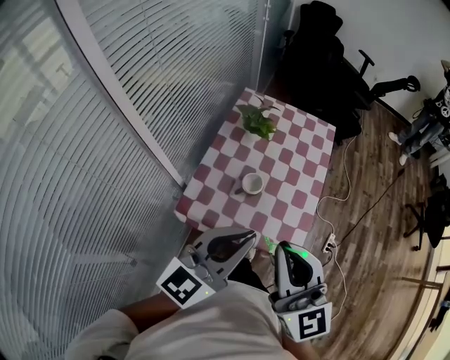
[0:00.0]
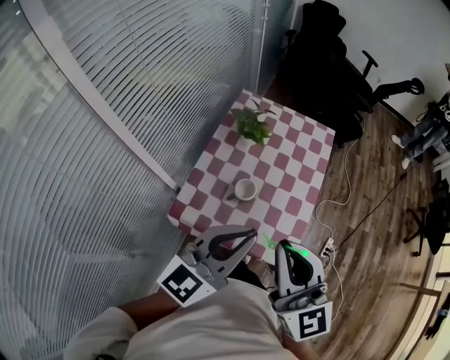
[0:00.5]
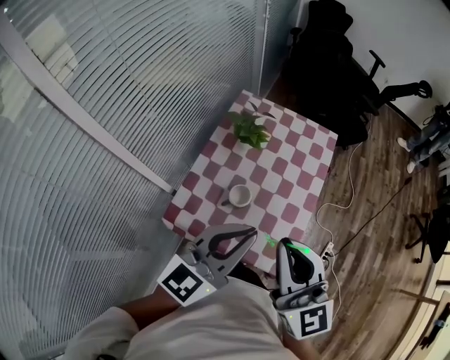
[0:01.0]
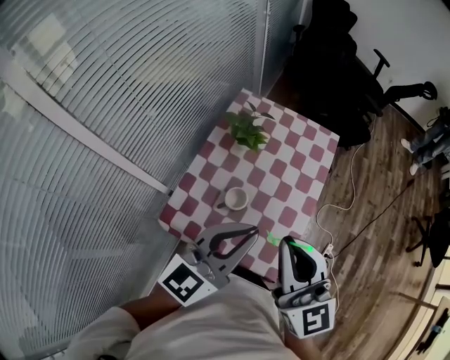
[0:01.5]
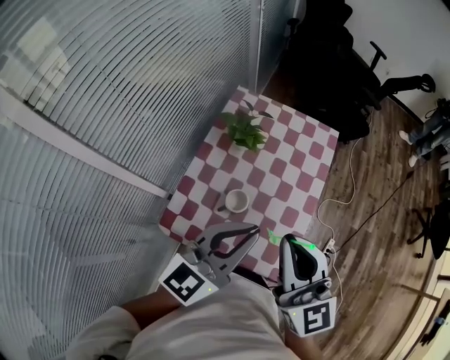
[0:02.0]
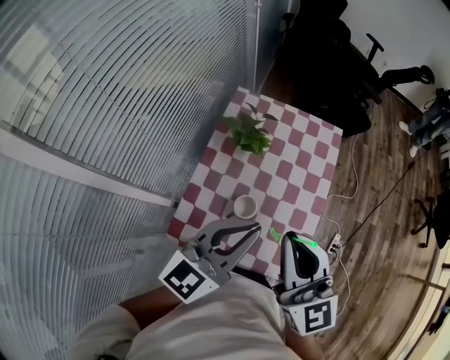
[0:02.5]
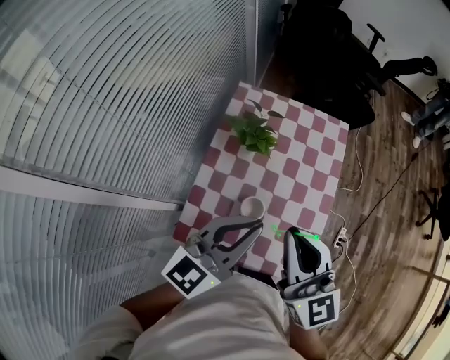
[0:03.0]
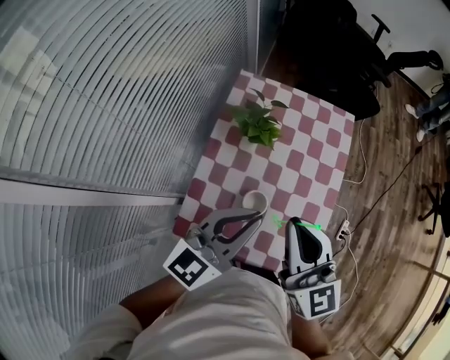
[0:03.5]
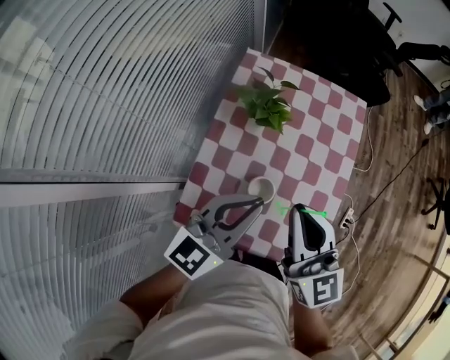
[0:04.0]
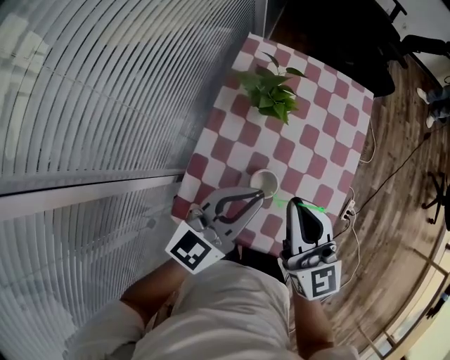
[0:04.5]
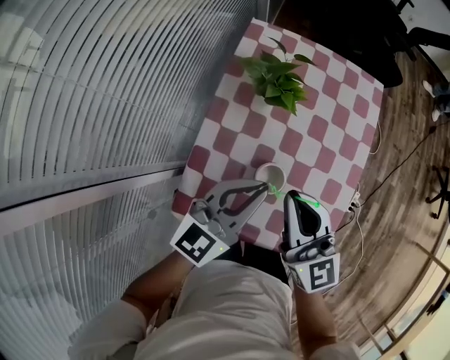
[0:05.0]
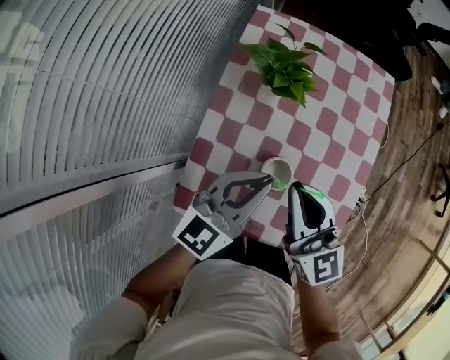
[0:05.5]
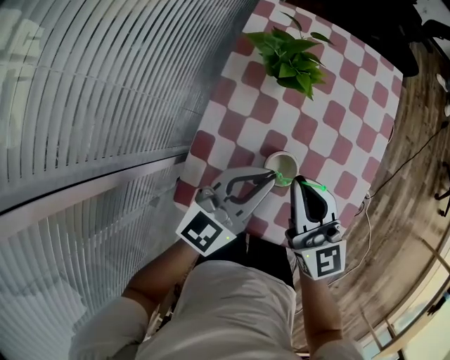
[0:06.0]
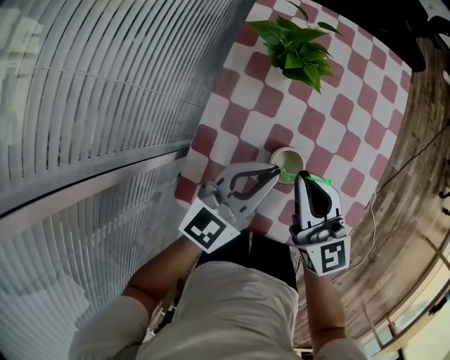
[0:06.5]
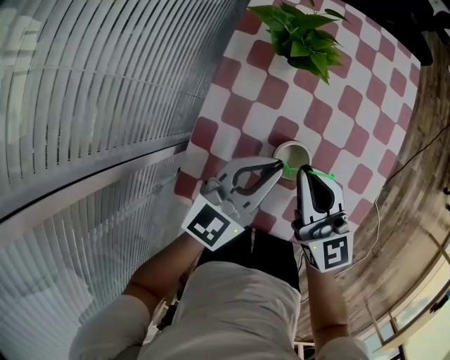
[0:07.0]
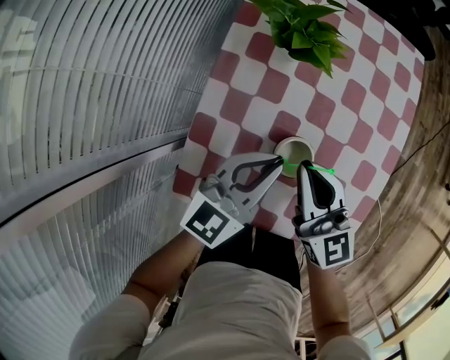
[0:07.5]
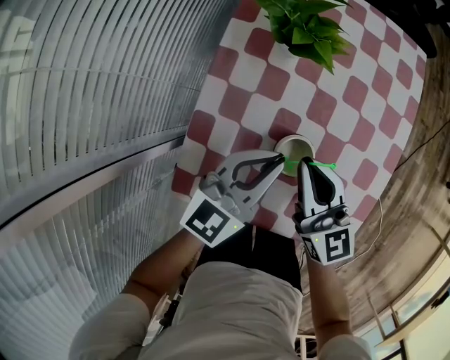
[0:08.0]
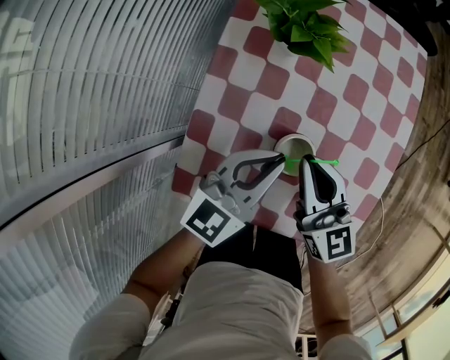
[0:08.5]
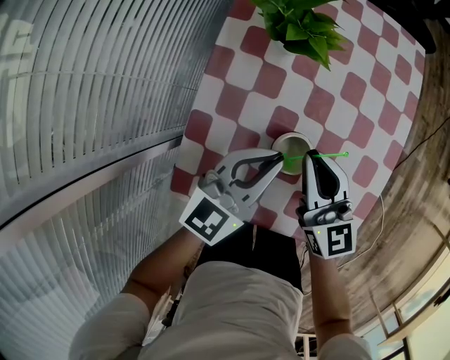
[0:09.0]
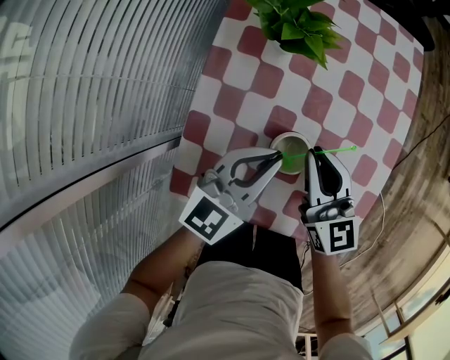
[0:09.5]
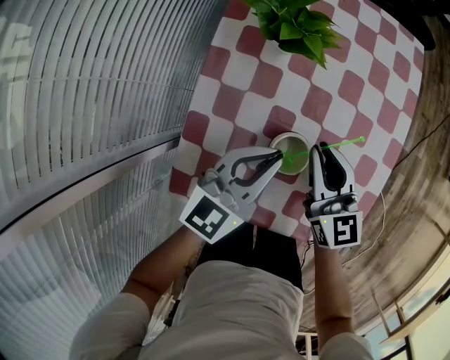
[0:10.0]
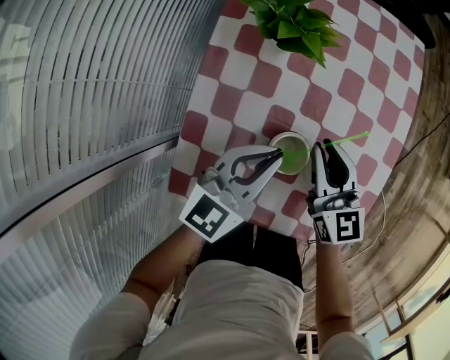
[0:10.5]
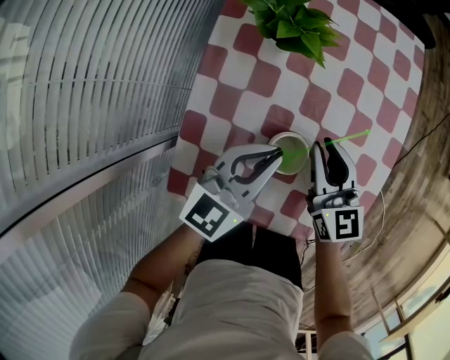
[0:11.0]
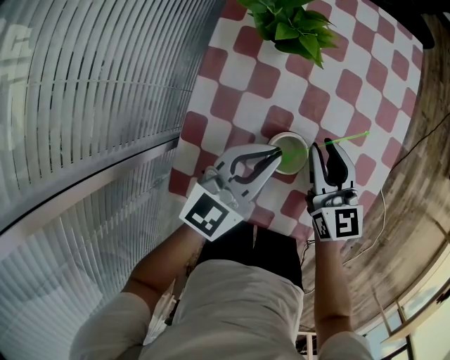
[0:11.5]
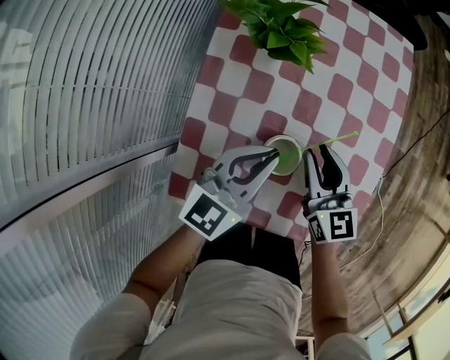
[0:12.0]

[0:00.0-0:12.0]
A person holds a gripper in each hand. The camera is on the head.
0:00.0 to 0:02.0: The right gripper heads forward and to the right, covering about 15 cm; the left gripper is displaced forward by approximately 15 cm.
0:02.0 to 0:04.0: The right gripper shifts approximately 15 cm downward, forward and to the left, while the left gripper heads downward, to the left and forward, covering about 15 cm.
0:04.0 to 0:06.0: Both grippers travel together downward, approximately 15 cm.
0:06.0 to 0:08.0: Both grippers travel together downward, approximately 5 cm.
0:08.0 to 0:10.0: The right gripper changes place by roughly 5 cm.
0:10.0 to 0:12.0: The grippers move only a little.

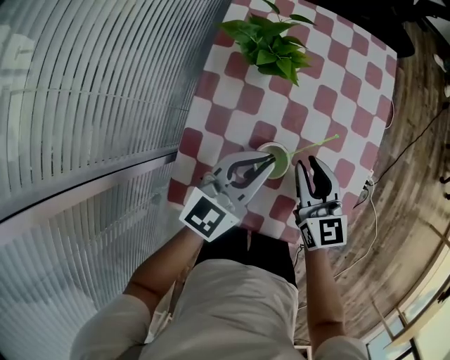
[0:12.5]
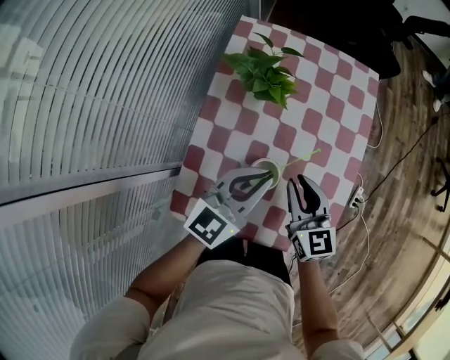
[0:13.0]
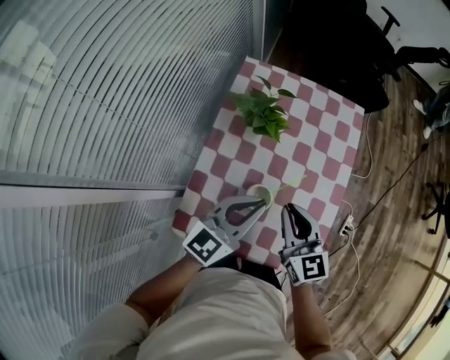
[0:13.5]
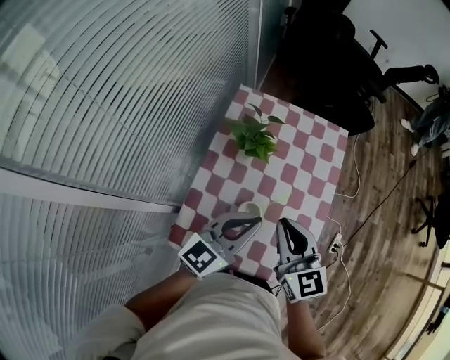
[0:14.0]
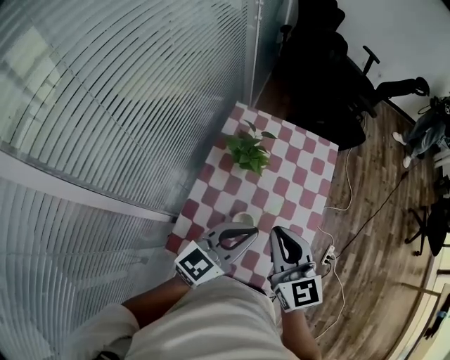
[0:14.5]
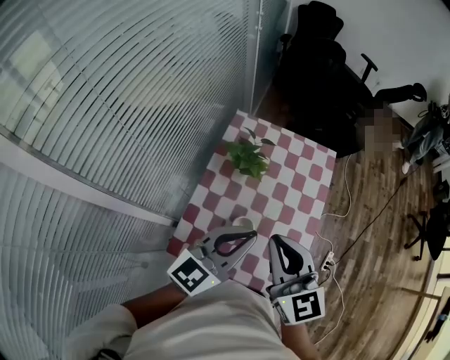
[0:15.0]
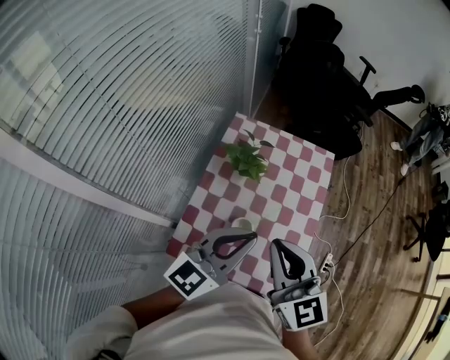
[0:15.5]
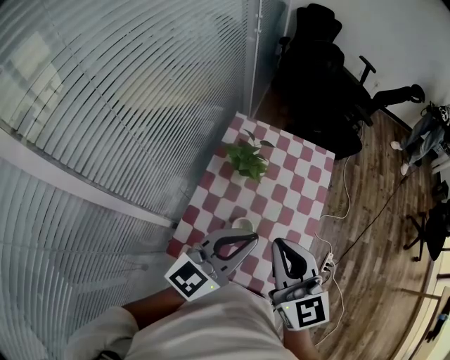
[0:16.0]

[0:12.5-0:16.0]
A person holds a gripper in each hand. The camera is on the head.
0:12.5 to 0:14.5: The grippers both shift upward by about 25 cm.
0:14.5 to 0:16.0: Both grippers move upward, approximately 10 cm.

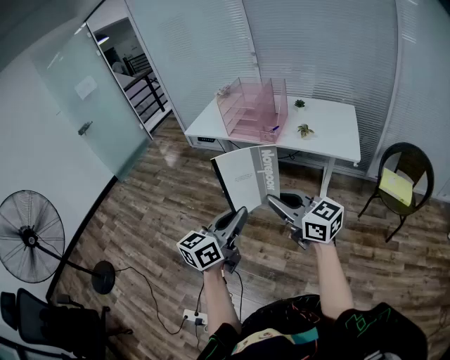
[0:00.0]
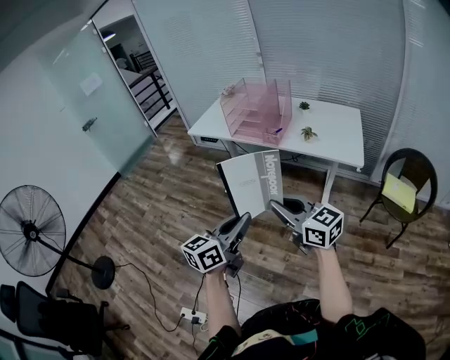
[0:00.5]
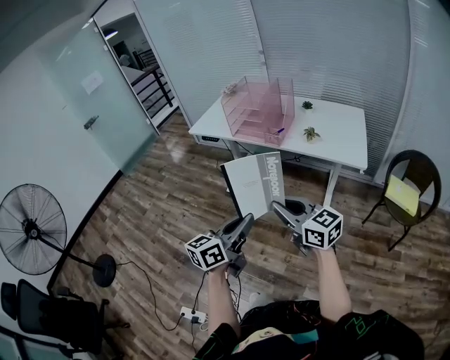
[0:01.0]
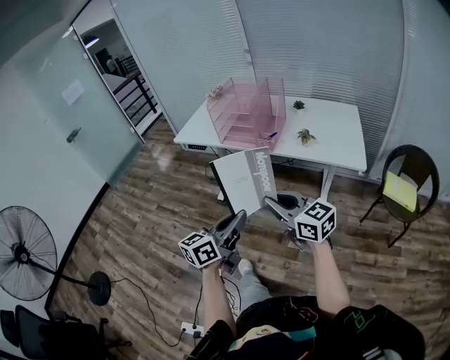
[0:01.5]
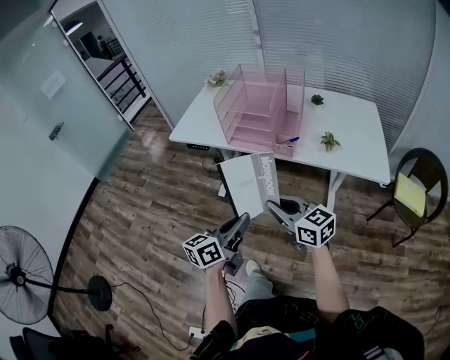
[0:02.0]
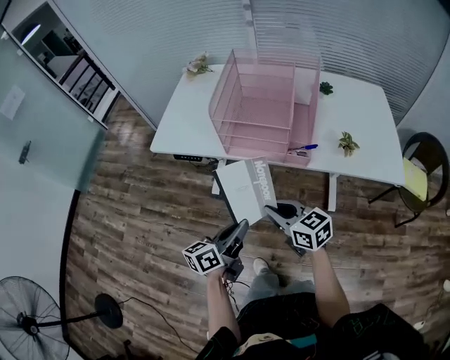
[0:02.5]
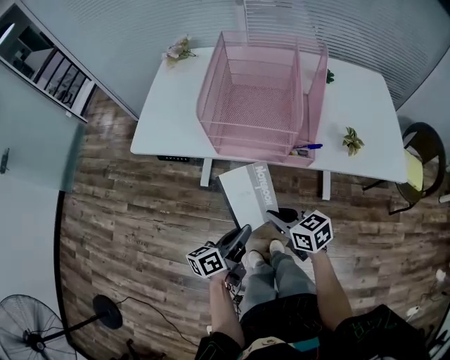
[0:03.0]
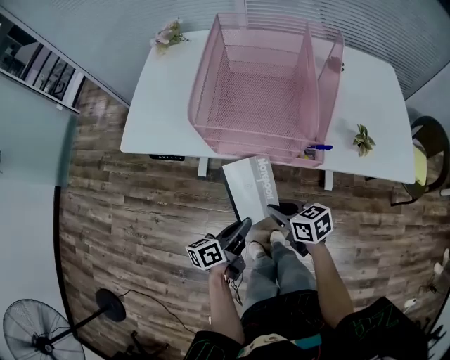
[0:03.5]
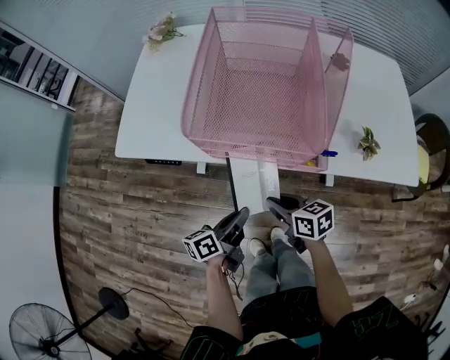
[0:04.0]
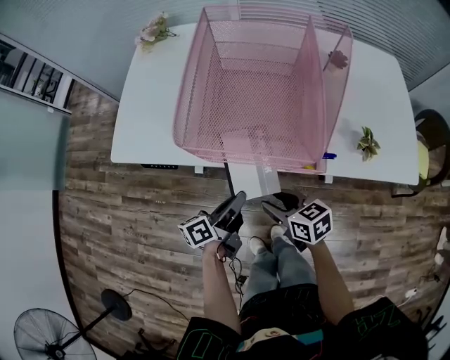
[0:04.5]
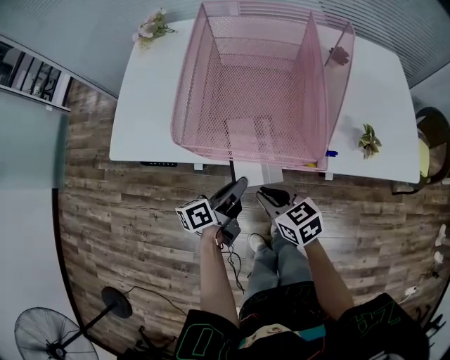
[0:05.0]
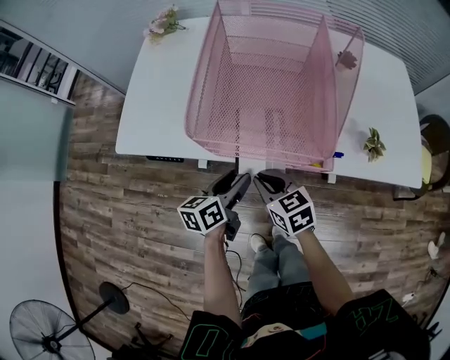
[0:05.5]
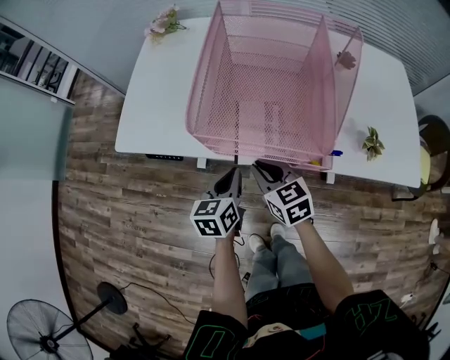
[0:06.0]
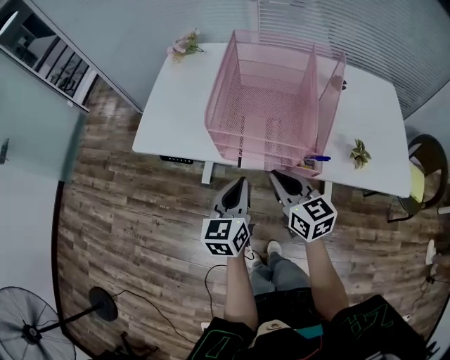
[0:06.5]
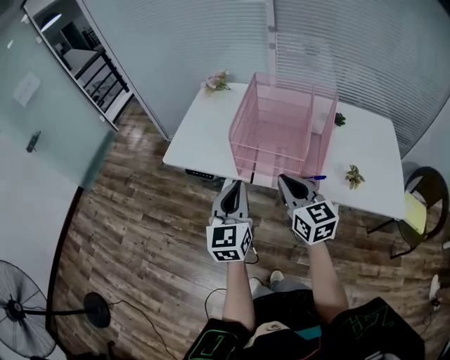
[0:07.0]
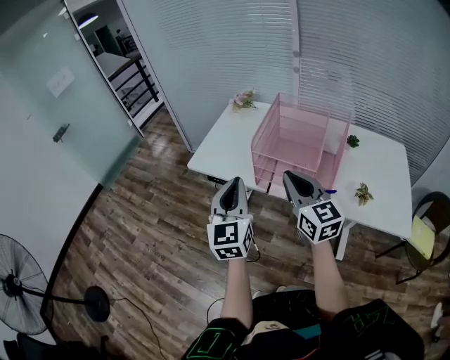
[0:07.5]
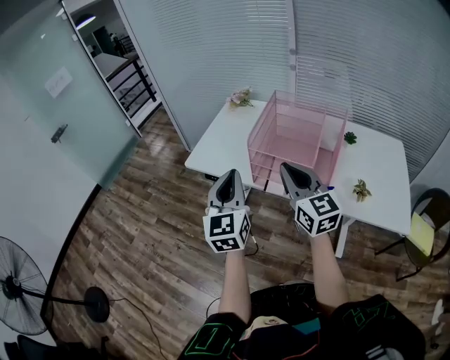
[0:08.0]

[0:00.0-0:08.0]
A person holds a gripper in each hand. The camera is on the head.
0:00.0 to 0:02.0: The two grippers go approximately 30 cm forward and downward.
0:02.0 to 0:04.0: Both grippers travel together forward and downward, some 30 cm. The right gripper swivels some 40 degrees. Meanwhile the left gripper rotates some 30 degrees.
0:04.0 to 0:06.0: Both grippers travel together forward, approximately 10 cm. The right gripper swivels approximately 30 degrees, and opens, then closes once more; the left gripper swivels approximately 40 degrees, and opens, then closes once more.
0:06.0 to 0:08.0: Both grippers travel together upward, about 30 cm. The left gripper points its fingers approximately 30 degrees further upward. The right gripper points its fingers some 30 degrees further upward.

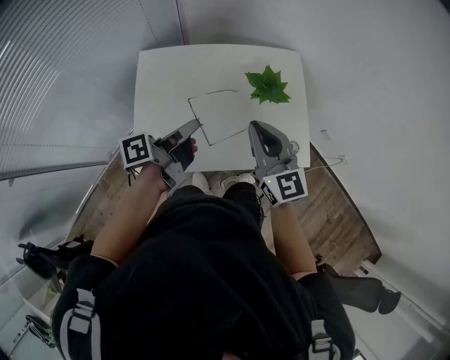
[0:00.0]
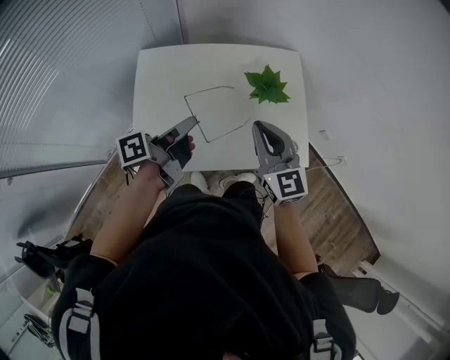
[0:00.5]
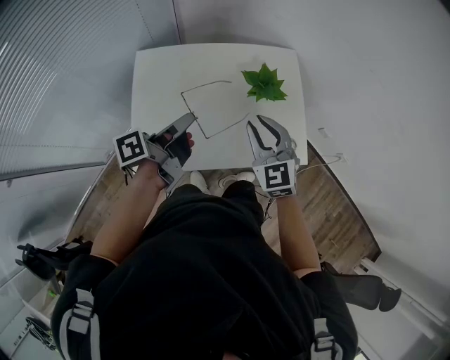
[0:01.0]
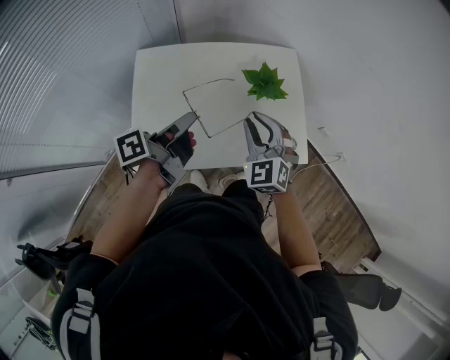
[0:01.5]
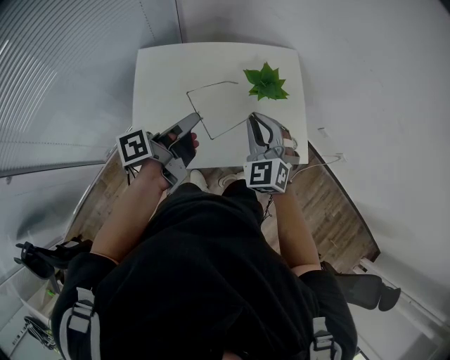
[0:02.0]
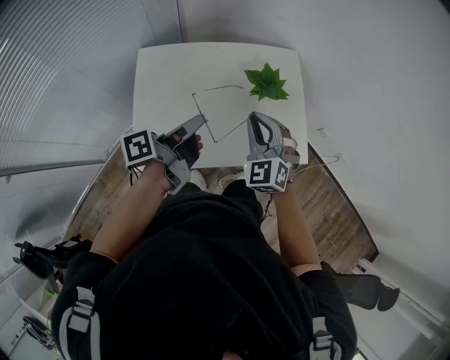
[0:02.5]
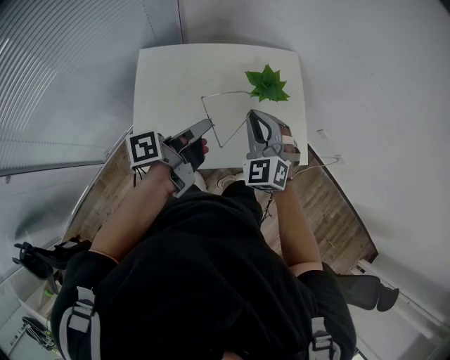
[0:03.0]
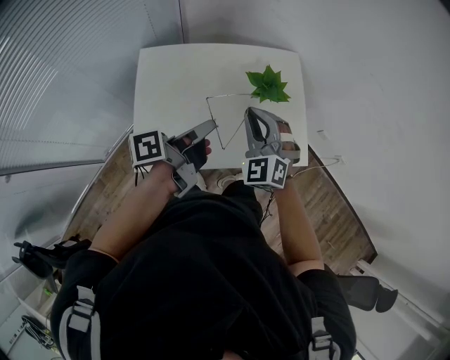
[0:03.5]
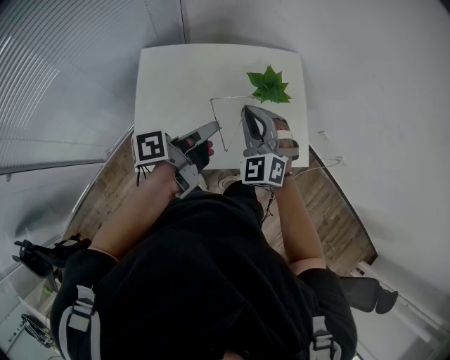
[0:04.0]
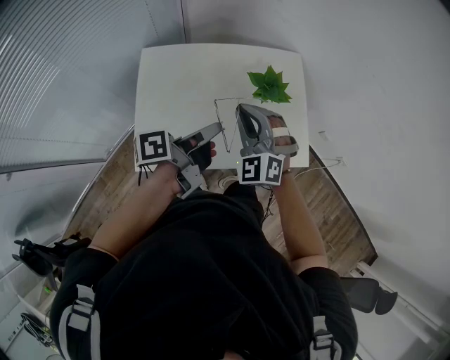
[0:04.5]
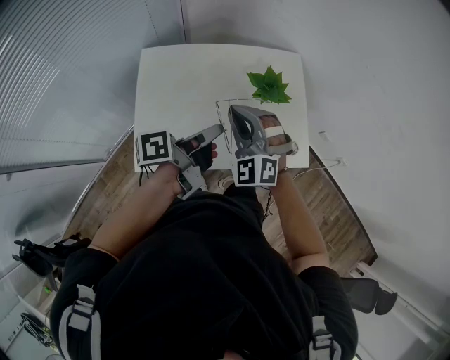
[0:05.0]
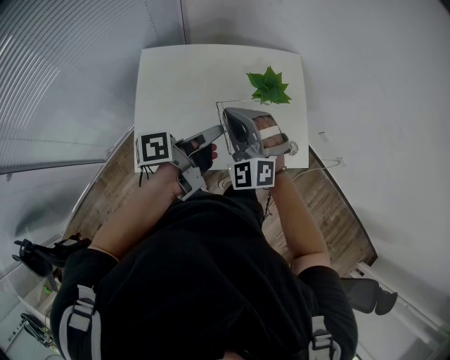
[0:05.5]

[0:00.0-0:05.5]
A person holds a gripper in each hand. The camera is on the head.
0:00.0 to 0:02.0: The right gripper is displaced downward by some 5 cm, and changes its angle by about 40 degrees.
0:03.5 to 0:05.5: The right gripper shifts by approximately 5 cm.
